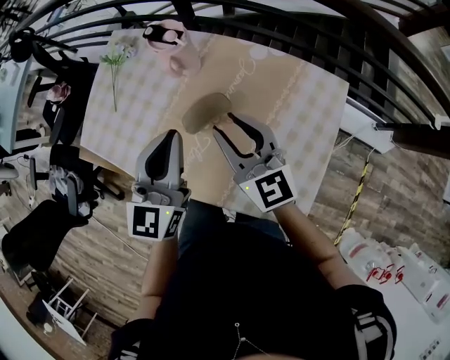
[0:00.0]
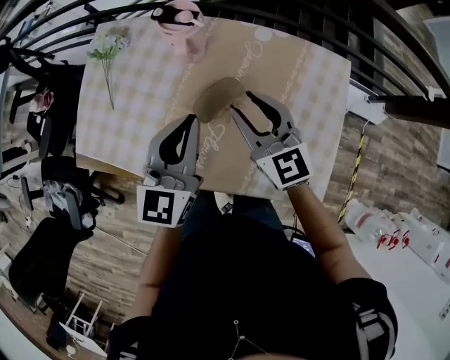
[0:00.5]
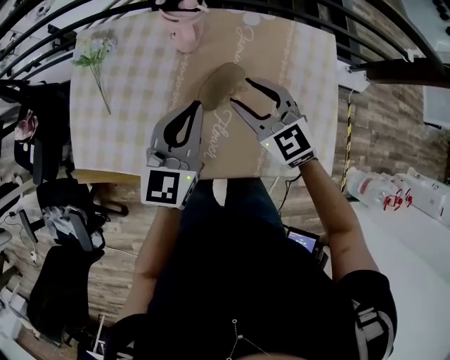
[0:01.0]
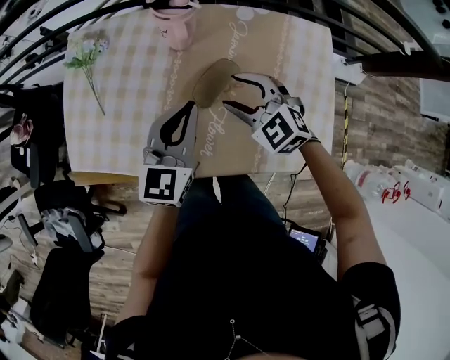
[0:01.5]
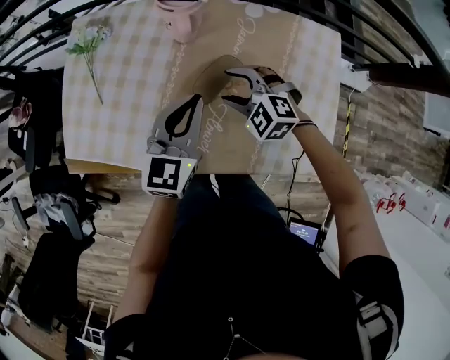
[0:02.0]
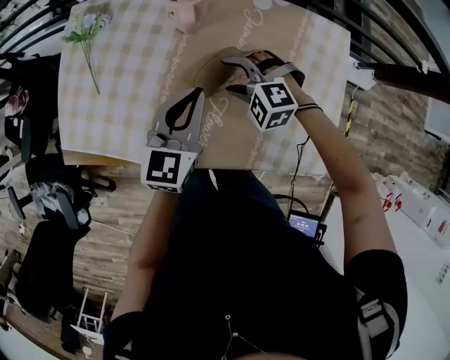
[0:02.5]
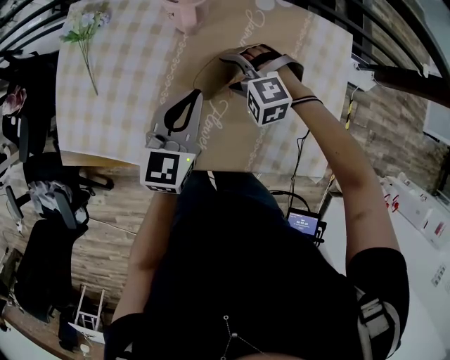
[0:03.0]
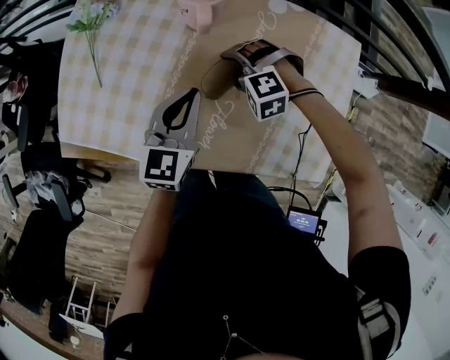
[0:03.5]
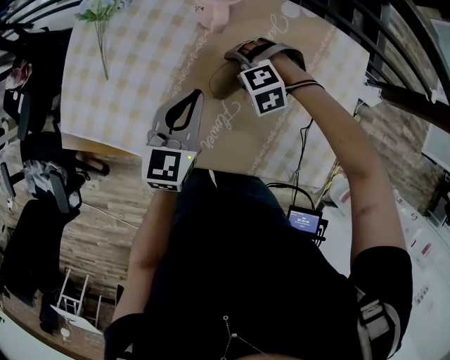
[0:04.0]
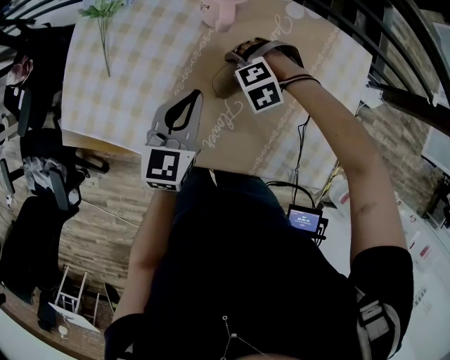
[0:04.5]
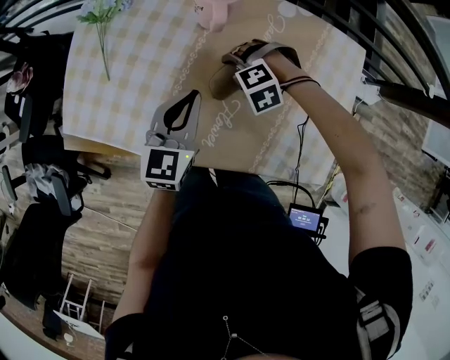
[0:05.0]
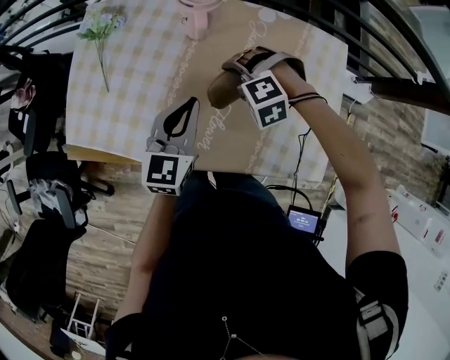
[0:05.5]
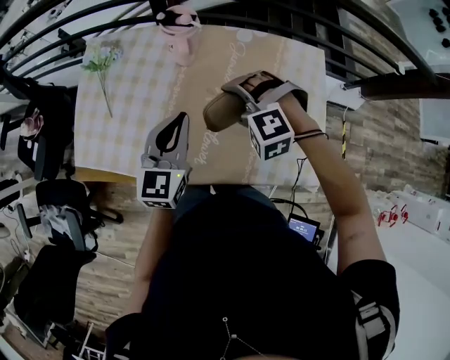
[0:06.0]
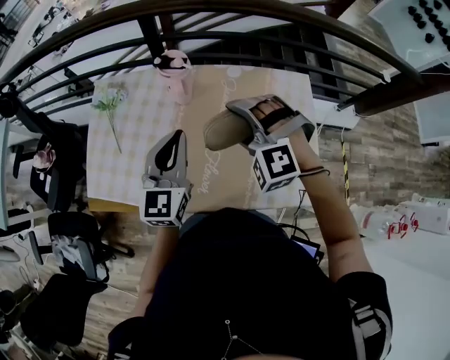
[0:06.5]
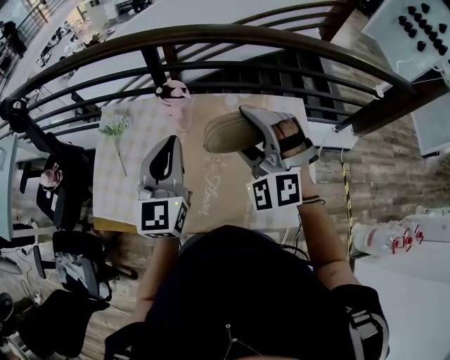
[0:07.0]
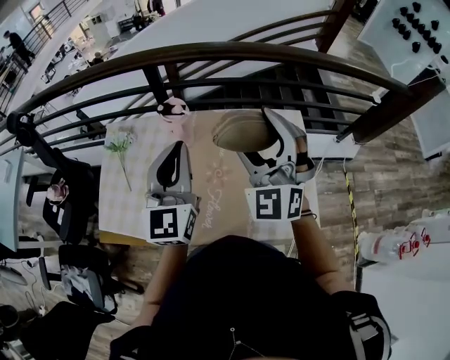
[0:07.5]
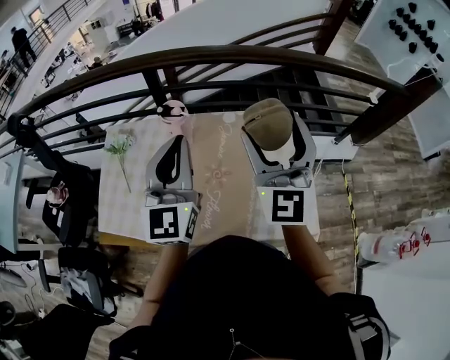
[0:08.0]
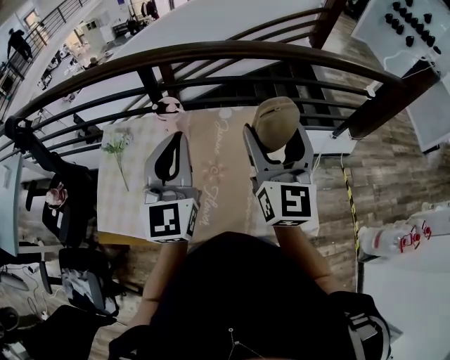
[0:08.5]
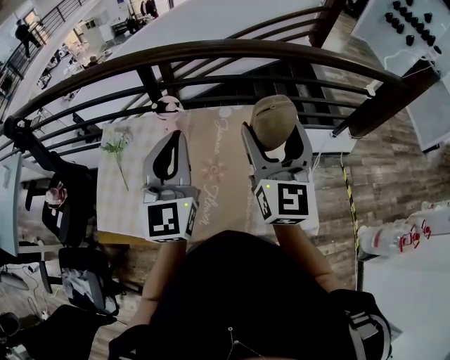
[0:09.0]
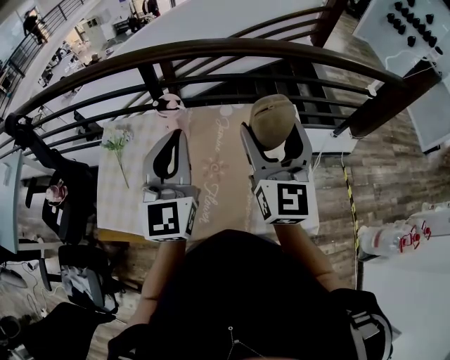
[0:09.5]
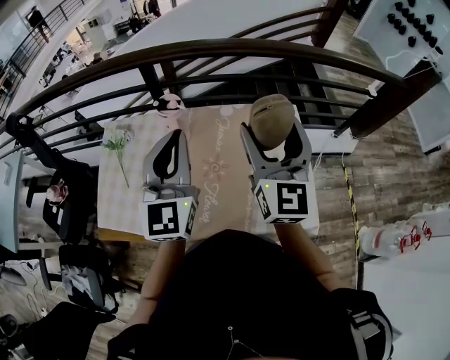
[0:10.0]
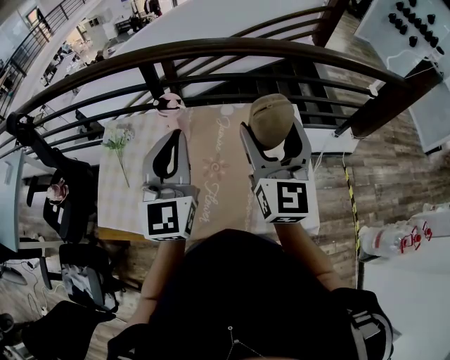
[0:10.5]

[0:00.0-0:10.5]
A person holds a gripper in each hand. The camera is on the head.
0:00.0 to 0:02.0: The left gripper shifts approximately 10 cm downward, and swivels approximately 20 degrees. The right gripper heads downward and to the left, covering roughly 20 cm, tilts its fingers some 40 degrees downward, and opens its fingers.
0:02.0 to 0:04.0: The right gripper goes some 10 cm downward, and swivels roughly 50 degrees. Meanwhile the left gripper shifts approximately 5 cm downward.
0:04.0 to 0:06.5: The right gripper travels upward by roughly 25 cm, and tilts its fingers approximately 30 degrees upward. Meanwhile the left gripper goes roughly 15 cm upward.
0:06.5 to 0:08.5: The right gripper heads upward and to the right, covering about 25 cm, and tips its fingers upward by approximately 60 degrees. Meanwhile the left gripper moves upward, some 15 cm.
0:08.5 to 0:10.5: The two grippers keep their place.

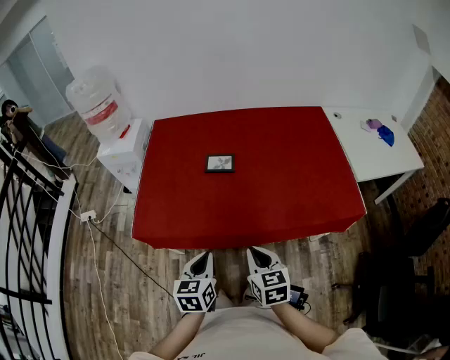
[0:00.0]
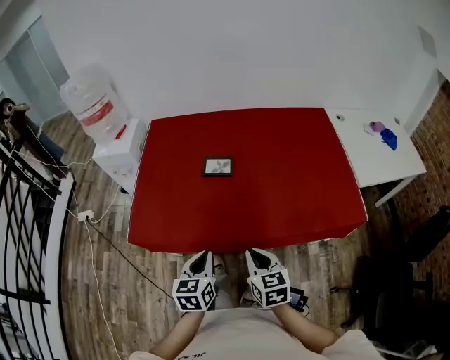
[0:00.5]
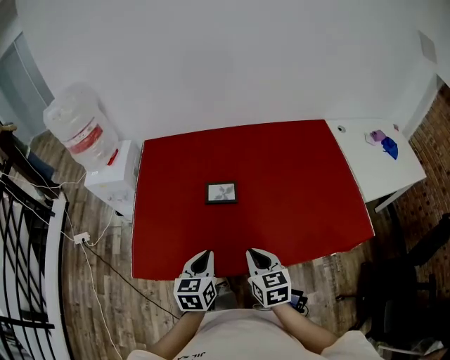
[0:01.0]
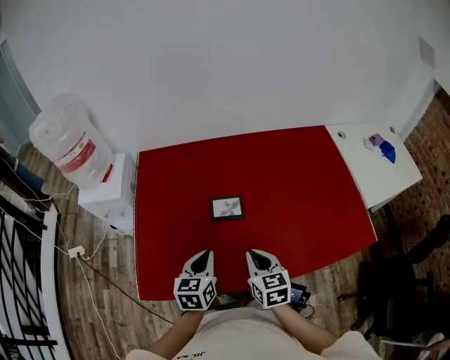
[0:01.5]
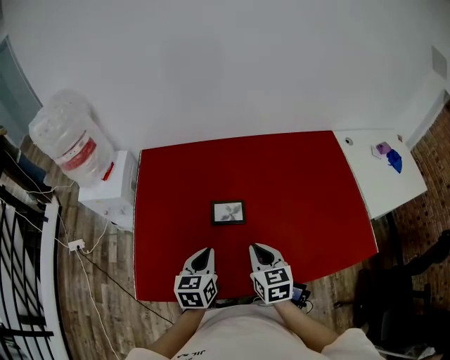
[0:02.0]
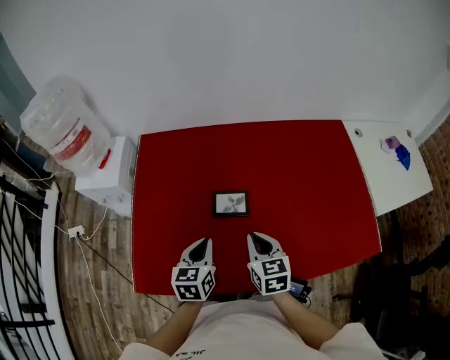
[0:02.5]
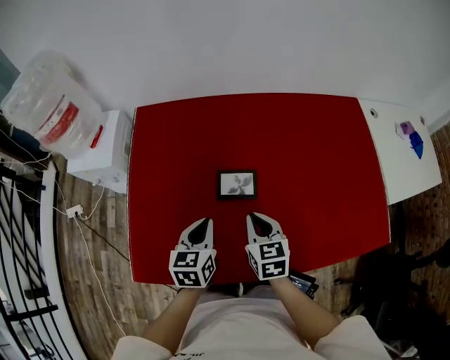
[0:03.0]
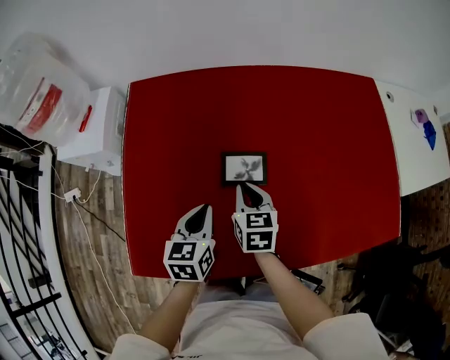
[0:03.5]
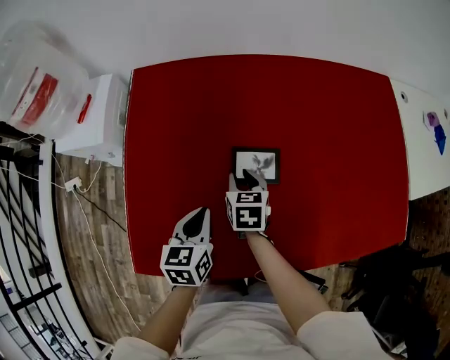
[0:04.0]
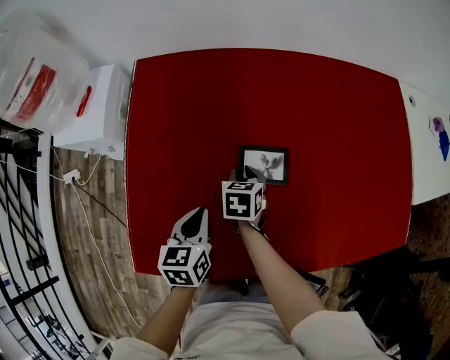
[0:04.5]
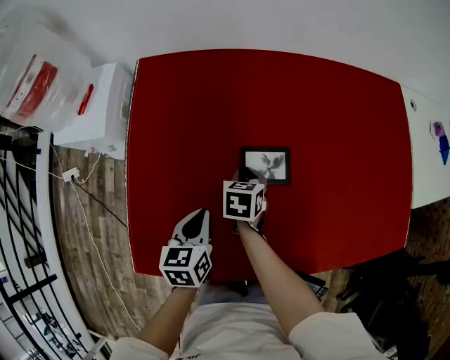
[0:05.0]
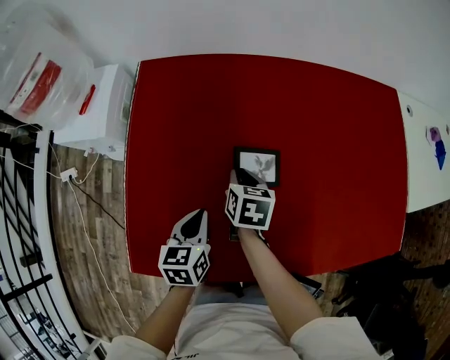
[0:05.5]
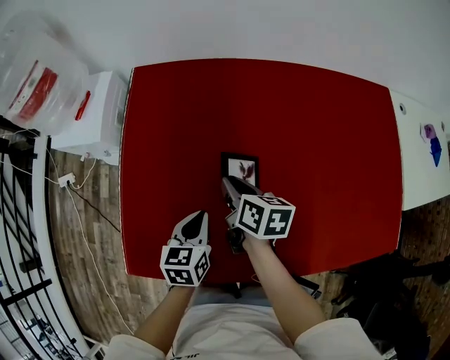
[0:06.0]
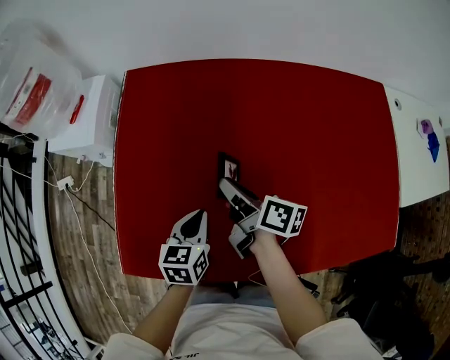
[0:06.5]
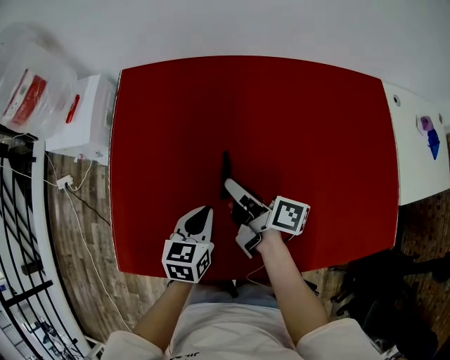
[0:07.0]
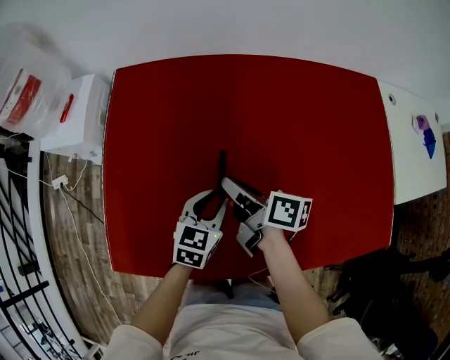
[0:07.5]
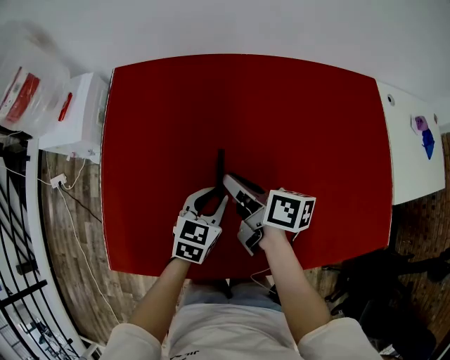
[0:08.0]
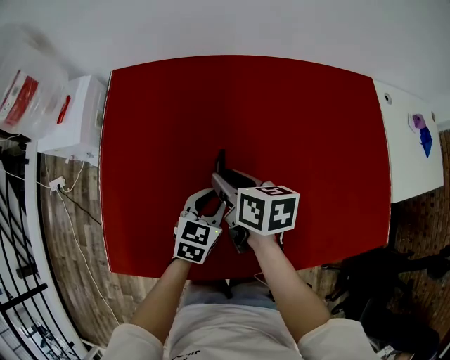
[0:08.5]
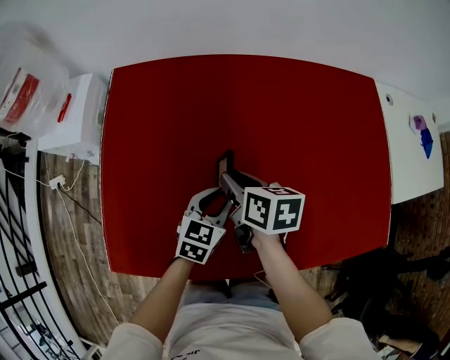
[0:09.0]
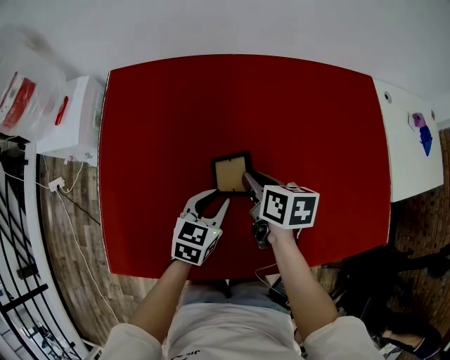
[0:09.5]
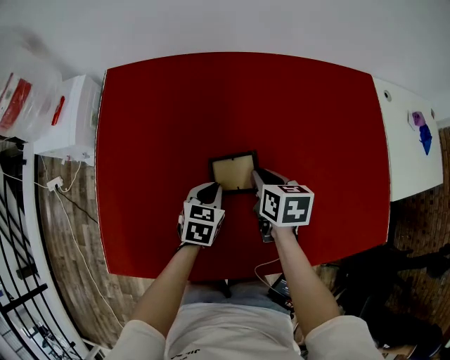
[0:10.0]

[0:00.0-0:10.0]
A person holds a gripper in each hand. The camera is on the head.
0:00.0 to 0:02.0: Both grippers move forward, about 30 cm.
0:02.0 to 0:04.0: The right gripper is displaced downward, forward and to the left by about 30 cm, and opens up; the left gripper is displaced downward, to the left and forward by some 15 cm.
0:04.0 to 0:06.0: The right gripper travels upward by approximately 5 cm, and changes its angle by roughly 30 degrees.
0:06.0 to 0:08.0: The left gripper moves to the right, roughly 15 cm, changes its angle by some 20 degrees, and opens its fingers. Meanwhile the right gripper goes some 10 cm to the right, and changes its angle by approximately 20 degrees.
0:08.0 to 0:10.0: The left gripper moves downward, some 5 cm; the right gripper is displaced to the right and downward by some 10 cm, and changes its angle by about 40 degrees.

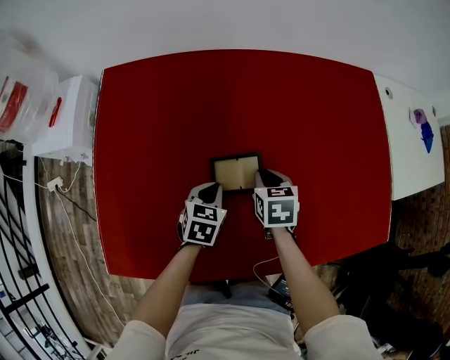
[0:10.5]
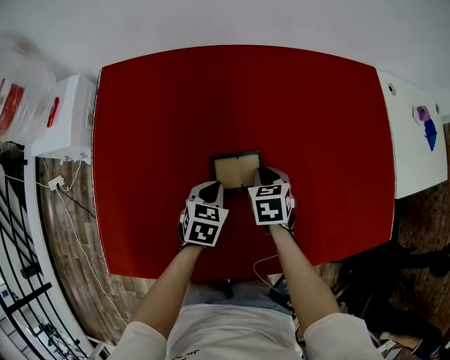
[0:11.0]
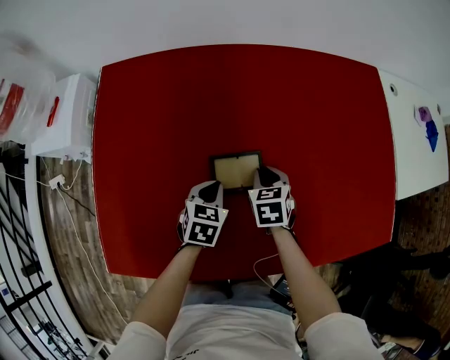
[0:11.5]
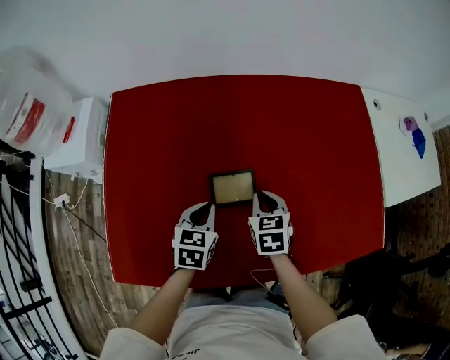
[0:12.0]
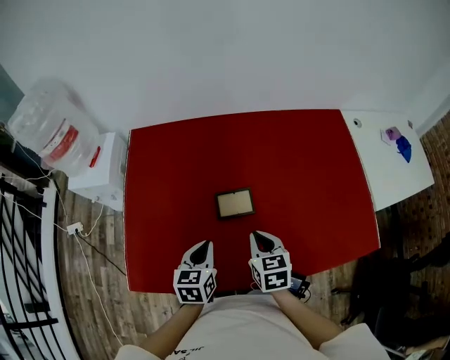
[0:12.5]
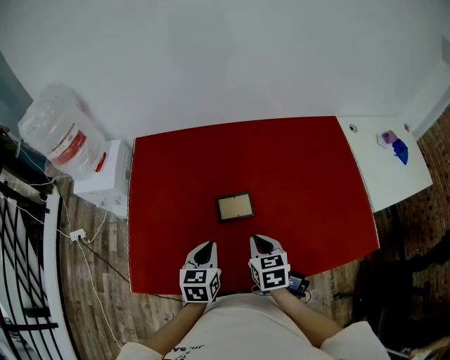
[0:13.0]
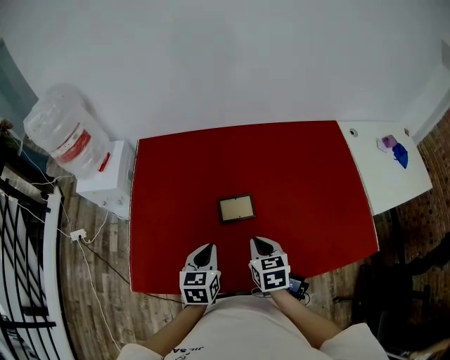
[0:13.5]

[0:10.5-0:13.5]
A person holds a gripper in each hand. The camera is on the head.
0:10.5 to 0:12.0: The right gripper moves about 5 cm. Meanwhile the left gripper moves upward, approximately 10 cm.
0:12.0 to 0:13.5: Both grippers travel together backward and upward, about 15 cm.
